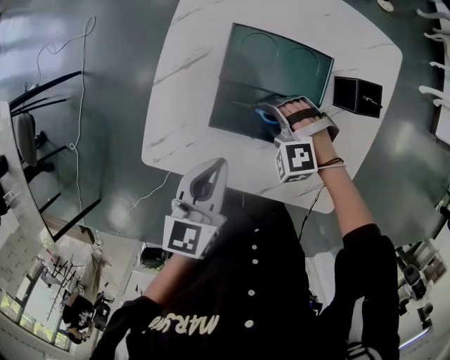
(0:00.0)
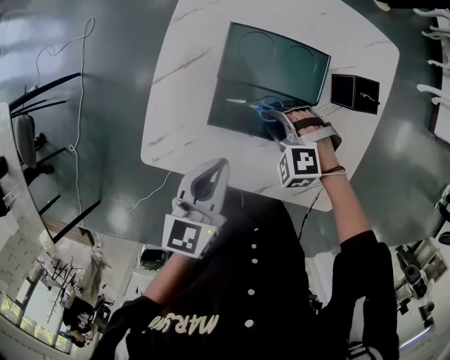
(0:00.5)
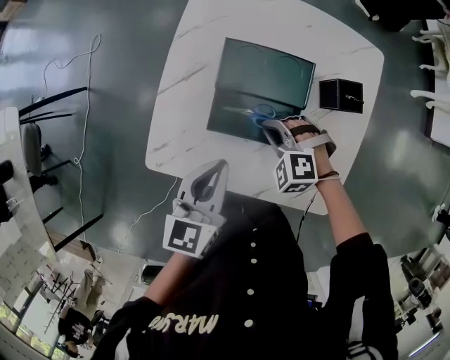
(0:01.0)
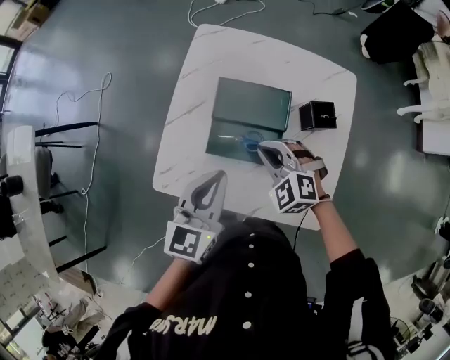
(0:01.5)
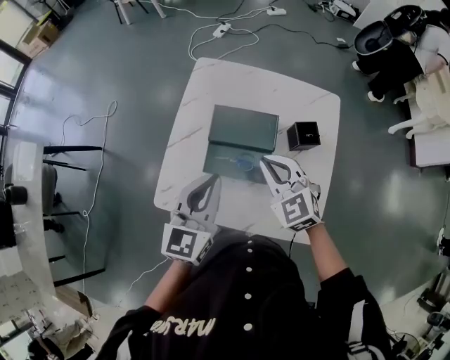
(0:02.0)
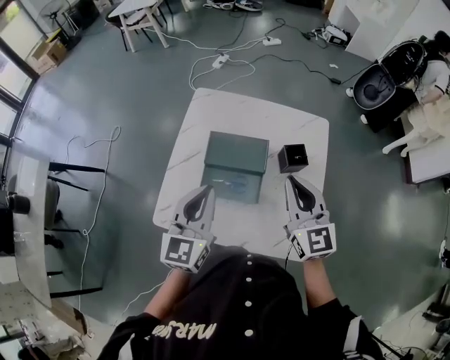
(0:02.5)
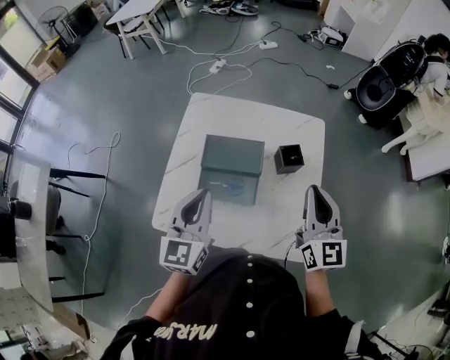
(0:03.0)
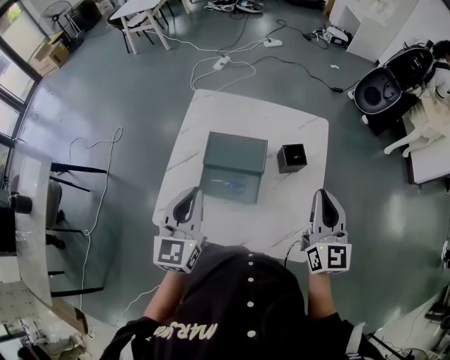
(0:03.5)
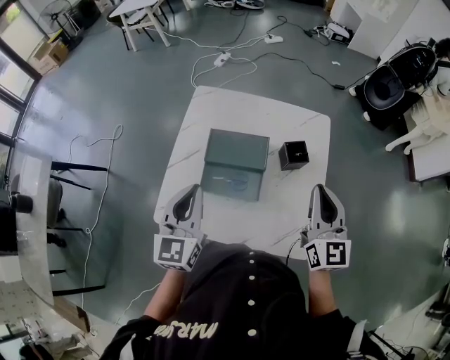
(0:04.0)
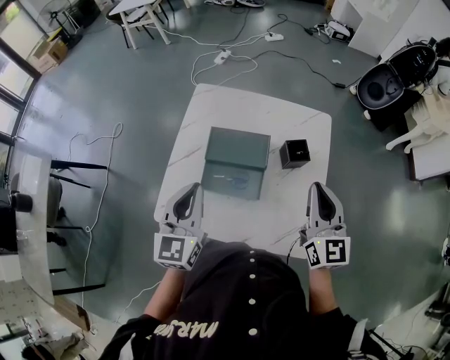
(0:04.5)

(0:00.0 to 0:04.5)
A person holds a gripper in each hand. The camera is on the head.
0:00.0 - 0:02.0: The left gripper heads upward, covering some 15 cm, and rotates about 20 degrees. Meanwhile the right gripper goes some 25 cm upward, tips its fingers upward by about 30 degrees, and closes.
0:02.0 - 0:04.5: The right gripper goes some 20 cm to the right and upward, and swivels about 40 degrees.

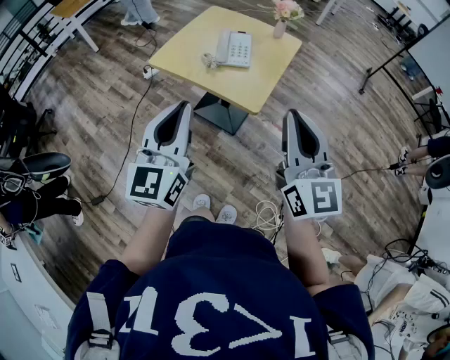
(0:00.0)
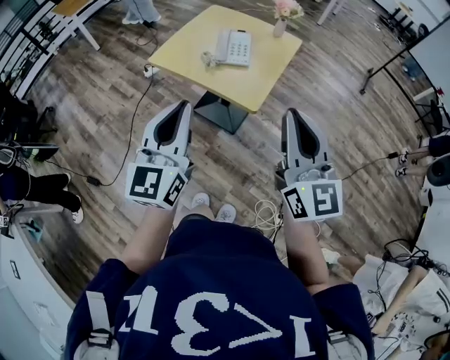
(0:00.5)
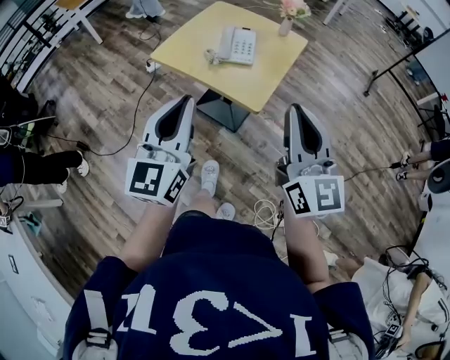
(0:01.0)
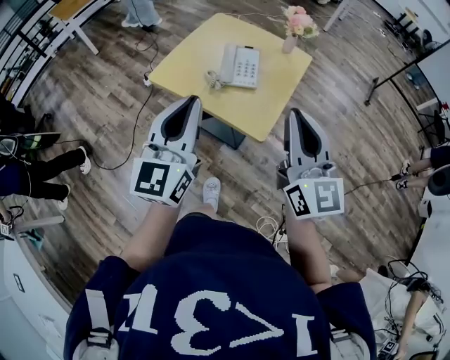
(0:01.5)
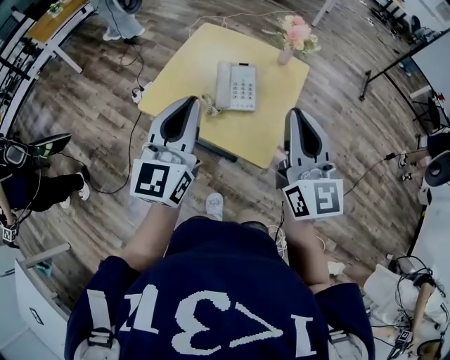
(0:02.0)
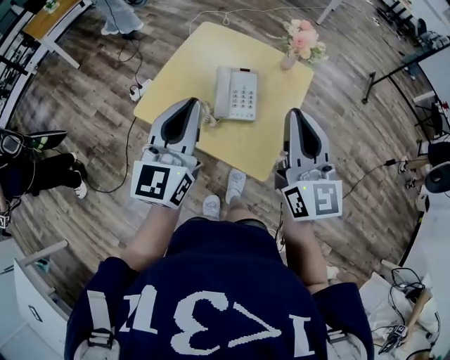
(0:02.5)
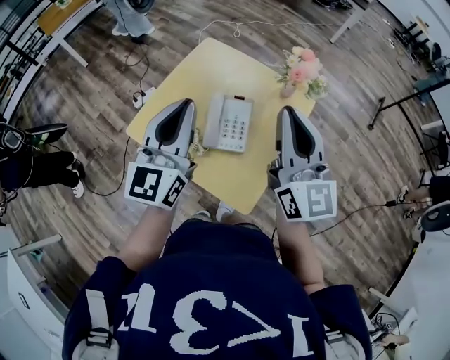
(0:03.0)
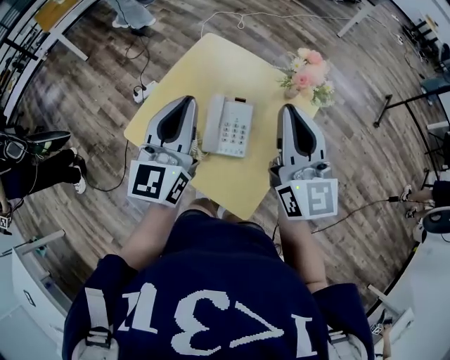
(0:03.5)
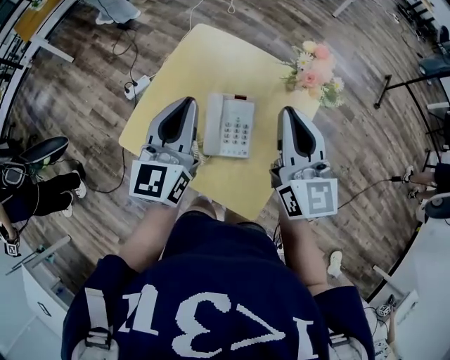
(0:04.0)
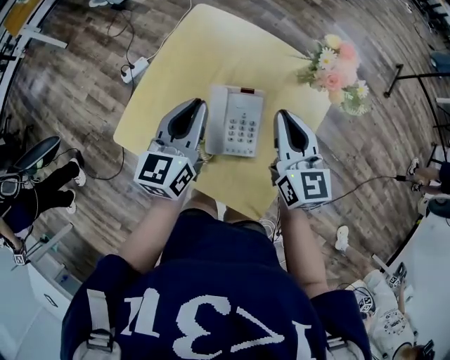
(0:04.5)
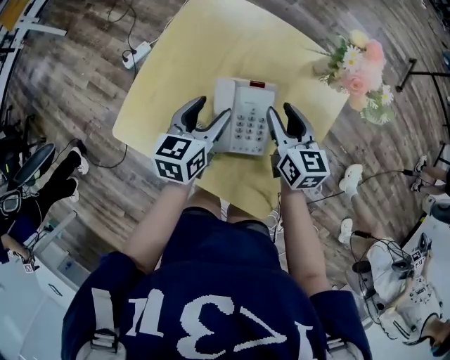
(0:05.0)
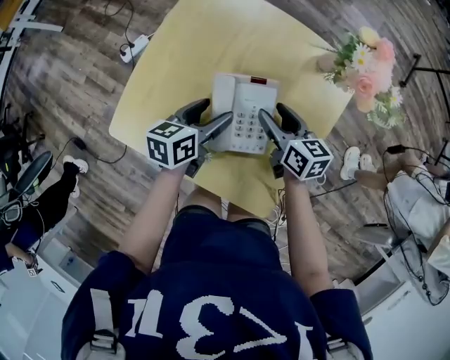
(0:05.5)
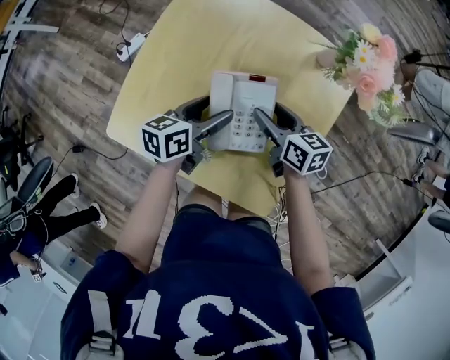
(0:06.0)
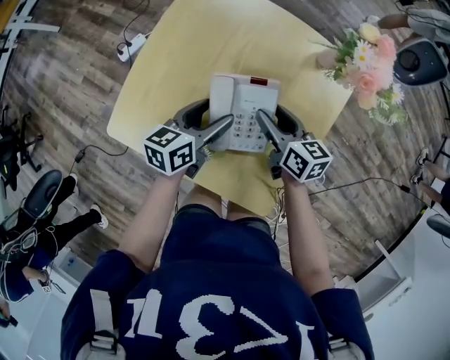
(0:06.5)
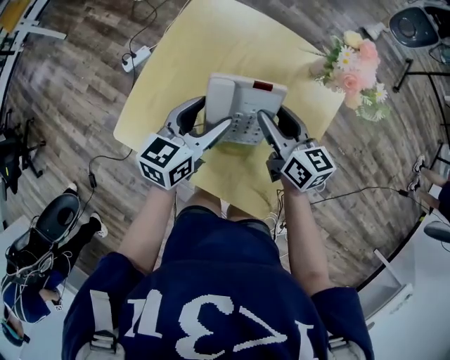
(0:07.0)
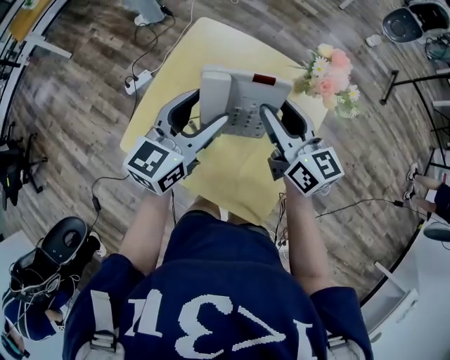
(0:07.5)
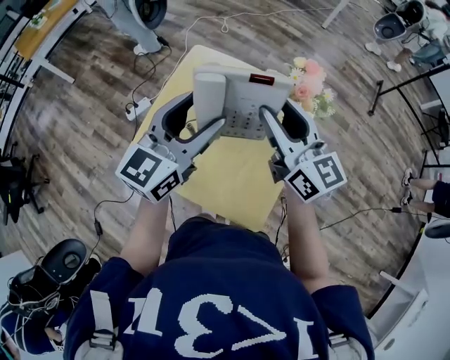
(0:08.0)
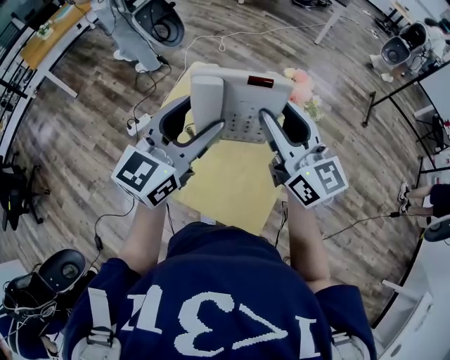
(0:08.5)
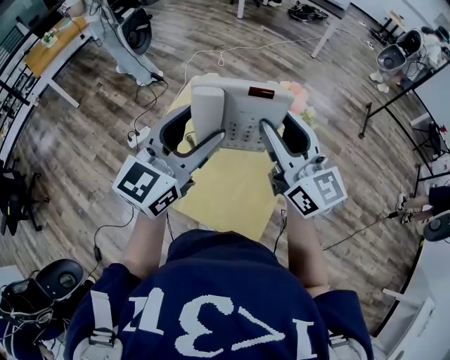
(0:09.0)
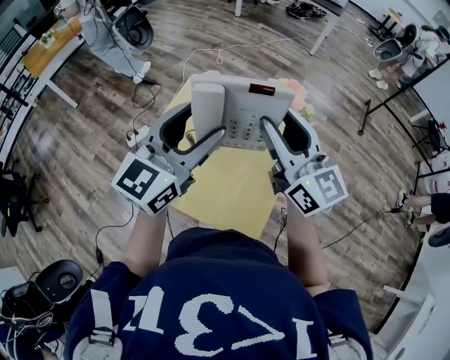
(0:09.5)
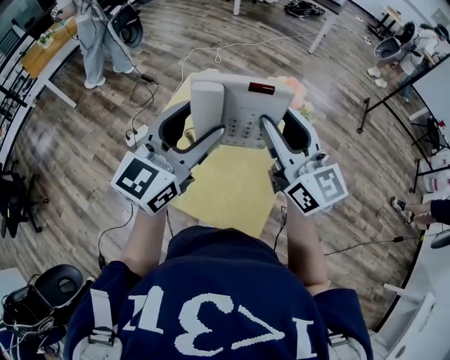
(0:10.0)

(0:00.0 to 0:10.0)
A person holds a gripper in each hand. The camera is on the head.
0:00.0 - 0:02.0: Both grippers move forward, about 25 cm.
0:02.0 - 0:04.0: The two grippers go about 25 cm forward.
0:04.0 - 0:06.0: Both grippers move downward, some 30 cm. The left gripper turns by approximately 60 degrees, and opens. Meanwhile the right gripper angles its fingers downward, by roughly 30 degrees, and opens its fingers.
0:06.0 - 0:08.0: Both grippers move upward, approximately 35 cm. The left gripper twists about 40 degrees clockwise, seen from behind, while the right gripper tips its fingers upward by some 30 degrees.
0:08.0 - 0:10.0: Both grippers travel together upward, about 5 cm.

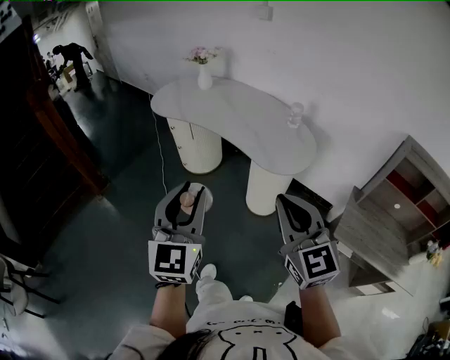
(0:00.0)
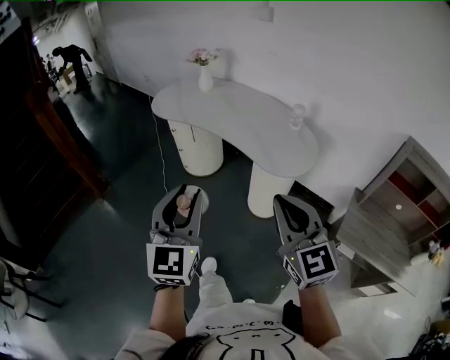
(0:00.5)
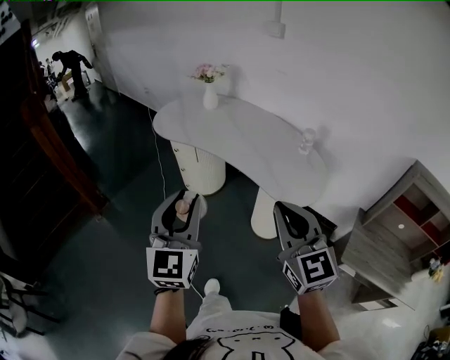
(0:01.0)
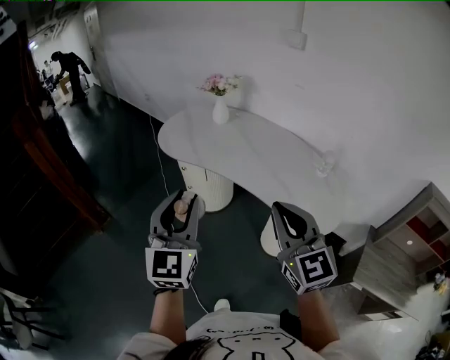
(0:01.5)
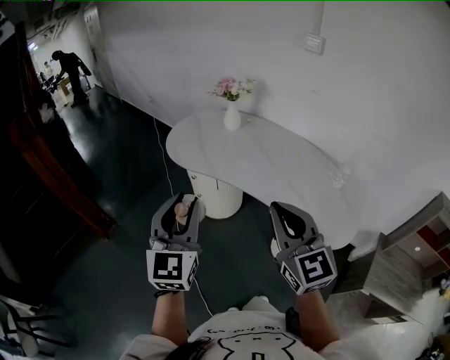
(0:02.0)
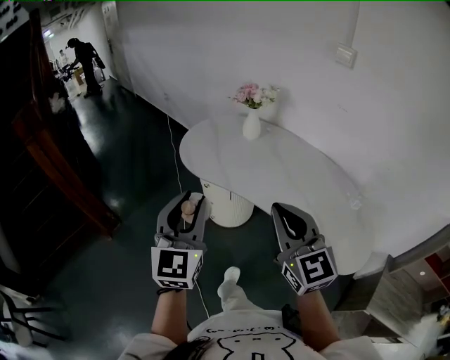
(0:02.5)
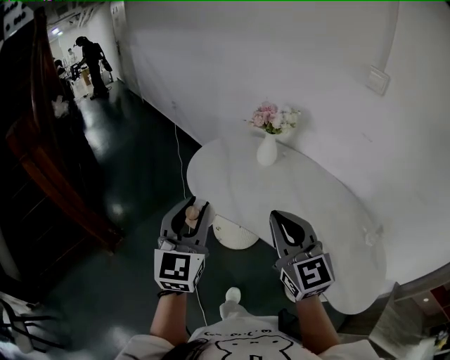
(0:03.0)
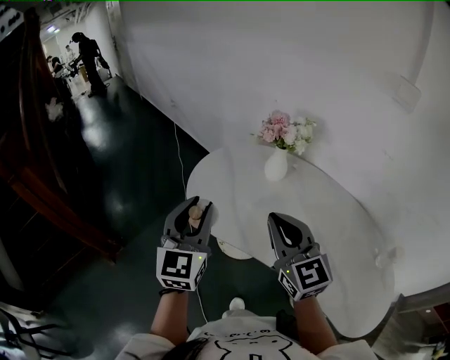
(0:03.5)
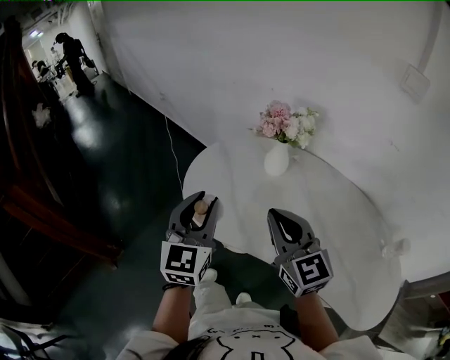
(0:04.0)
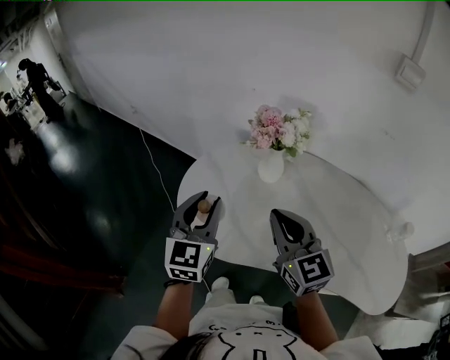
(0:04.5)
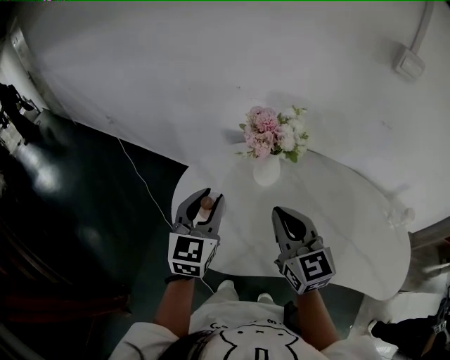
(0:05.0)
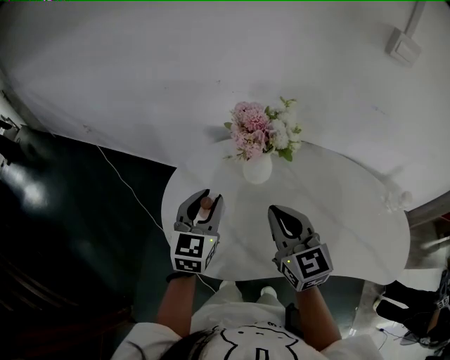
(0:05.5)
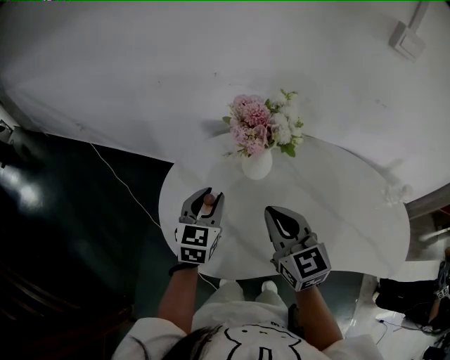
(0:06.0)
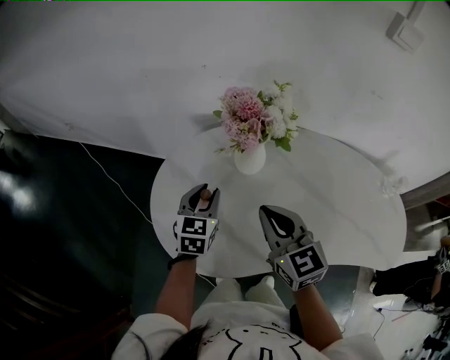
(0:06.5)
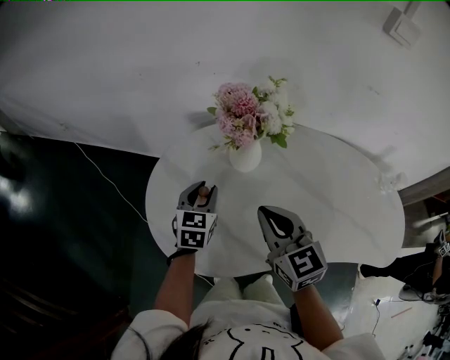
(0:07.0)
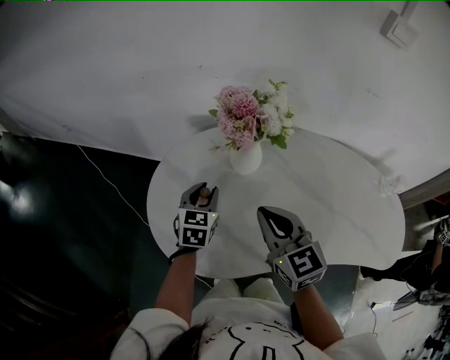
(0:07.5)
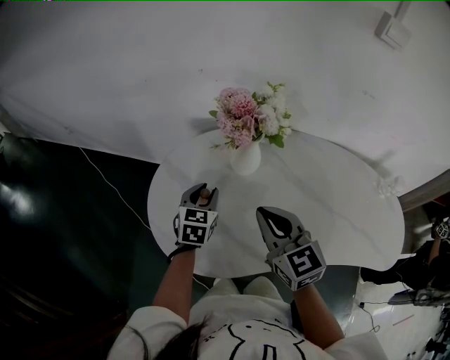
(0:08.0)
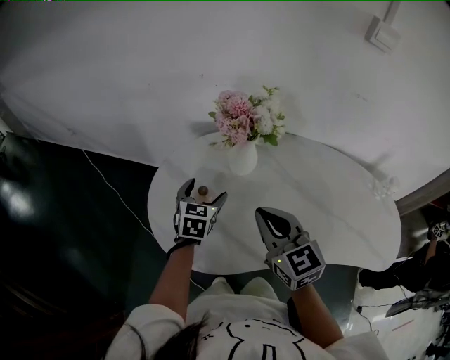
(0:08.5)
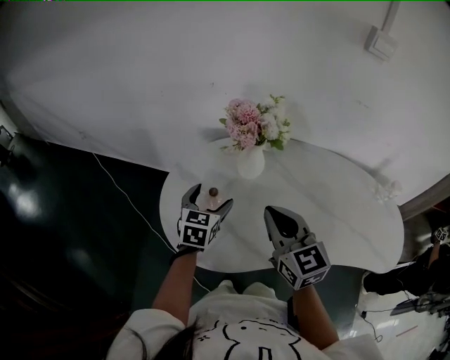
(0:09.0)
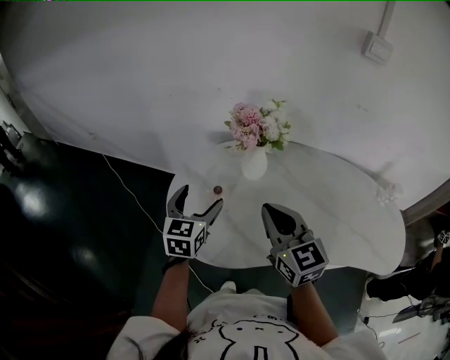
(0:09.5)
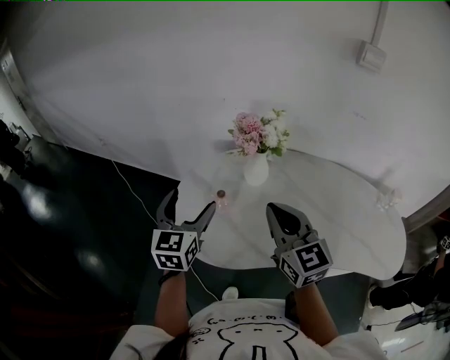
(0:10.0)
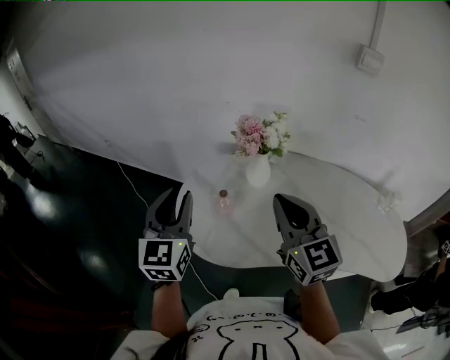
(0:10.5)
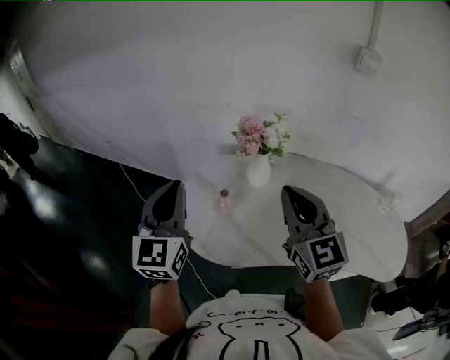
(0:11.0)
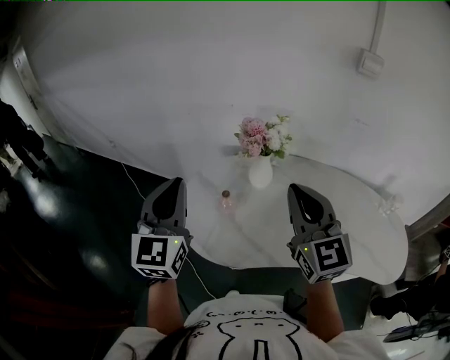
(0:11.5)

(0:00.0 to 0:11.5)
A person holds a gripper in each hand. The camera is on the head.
0:00.0 - 0:02.0: The two grippers travel together, forward and to the left, roughly 40 cm.
0:02.0 - 0:04.0: The two grippers travel together, forward, roughly 50 cm.
0:04.0 - 0:06.0: The left gripper shifts by approximately 30 cm, and swivels roughly 30 degrees. Meanwhile the right gripper moves approximately 20 cm, and turns by roughly 30 degrees.
0:06.0 - 0:07.5: The left gripper moves downward, some 10 cm.
0:07.5 - 0:09.5: The left gripper shifts roughly 15 cm upward, backward and to the left, and opens. The right gripper is displaced upward and backward by approximately 10 cm.
0:09.5 - 0:11.5: The left gripper moves upward and backward, some 25 cm, swivels about 30 degrees, and closes. Meanwhile the right gripper goes some 15 cm upward.

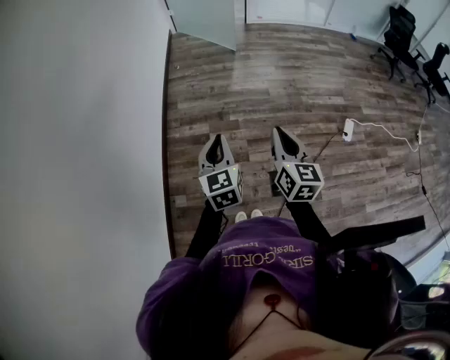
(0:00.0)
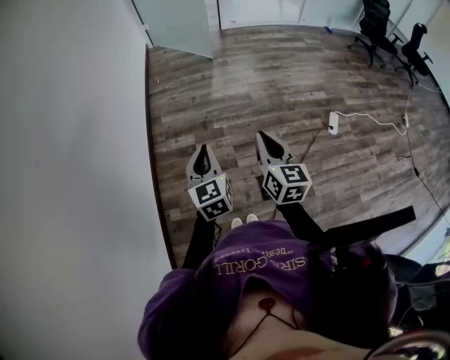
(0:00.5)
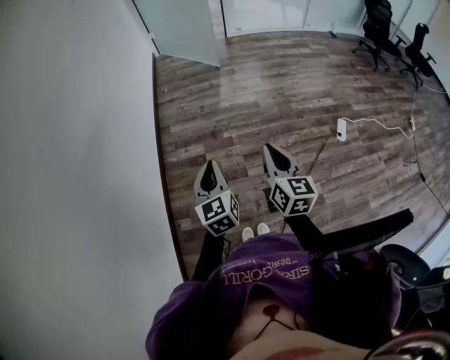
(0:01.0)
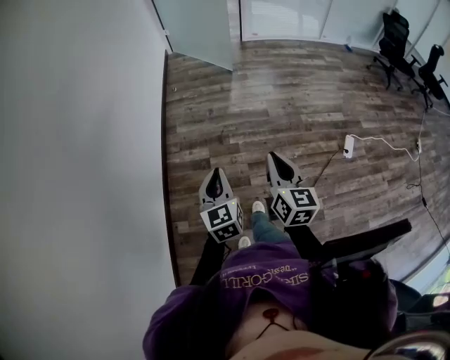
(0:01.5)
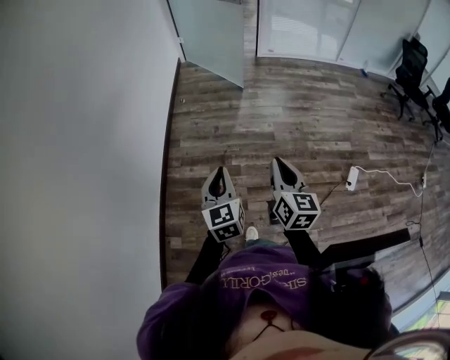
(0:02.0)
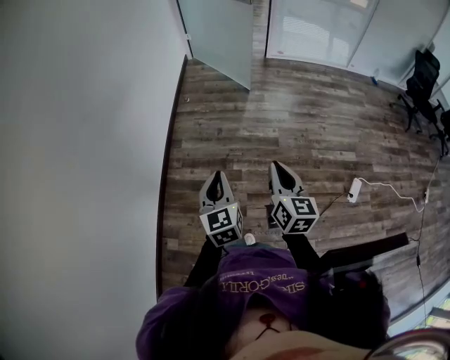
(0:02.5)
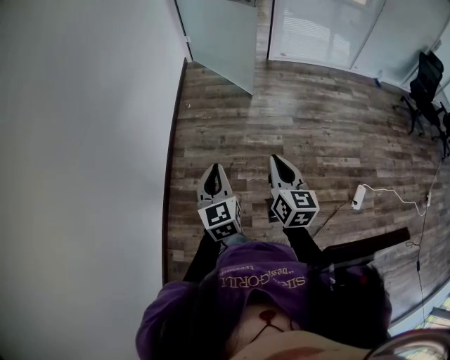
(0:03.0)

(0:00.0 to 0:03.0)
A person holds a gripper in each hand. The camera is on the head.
0:00.0 - 0:01.5: The right gripper moves forward, approximately 5 cm. The left gripper ends up some 5 cm from where it was.
0:01.5 - 0:03.0: The two grippers go approximately 30 cm forward.
